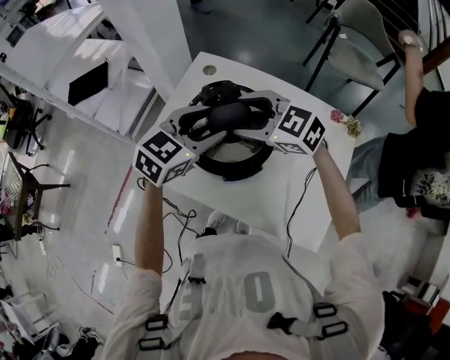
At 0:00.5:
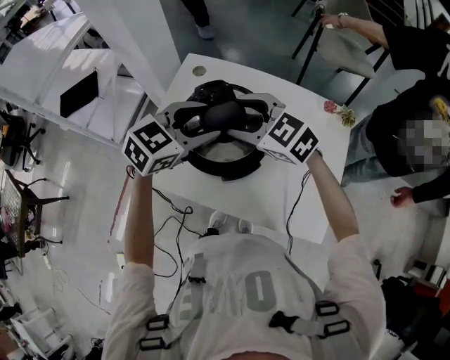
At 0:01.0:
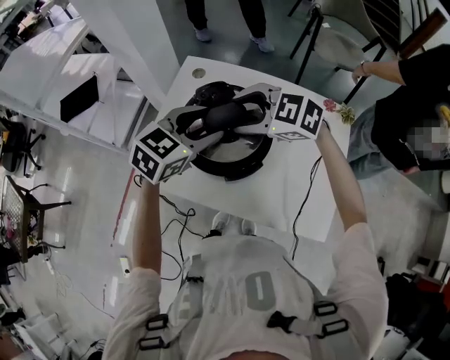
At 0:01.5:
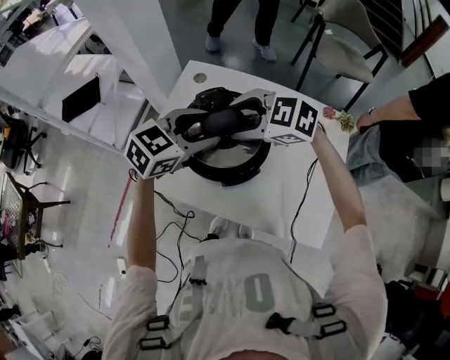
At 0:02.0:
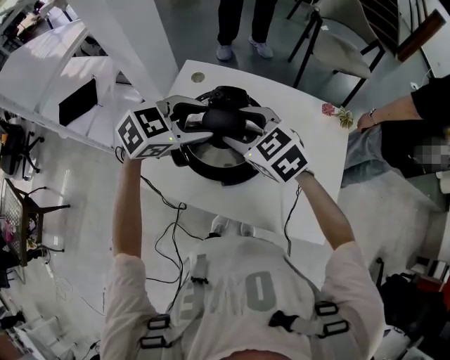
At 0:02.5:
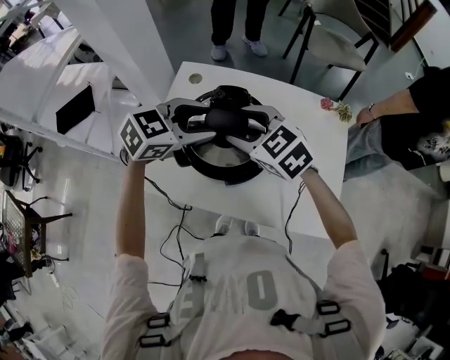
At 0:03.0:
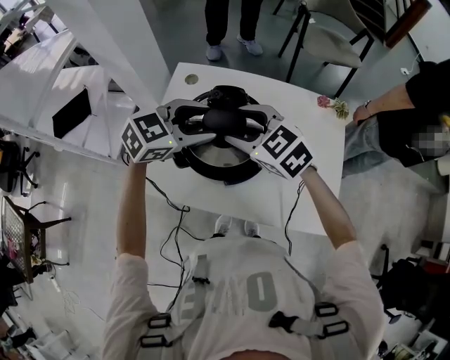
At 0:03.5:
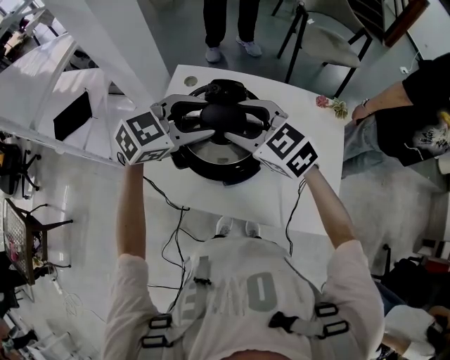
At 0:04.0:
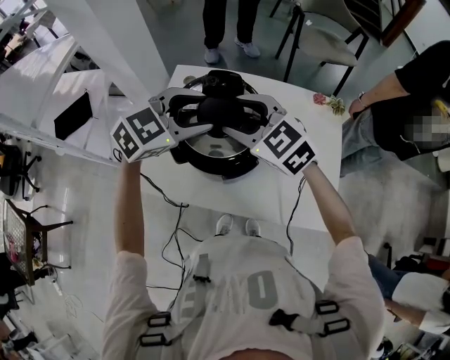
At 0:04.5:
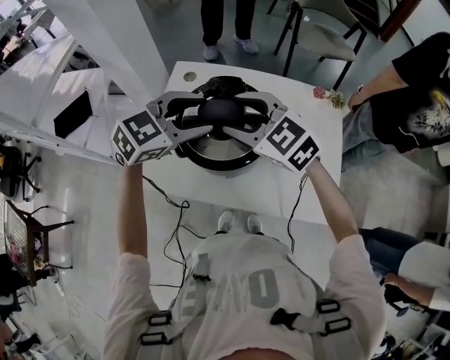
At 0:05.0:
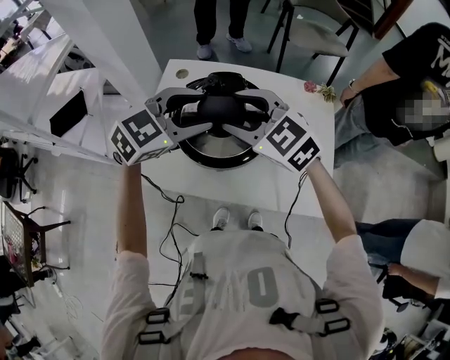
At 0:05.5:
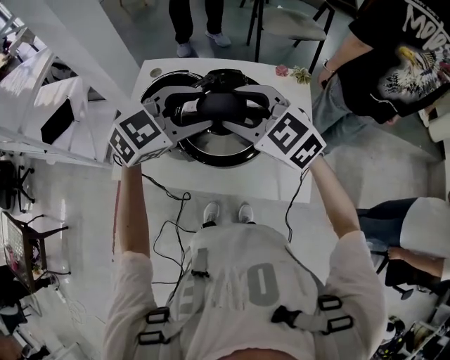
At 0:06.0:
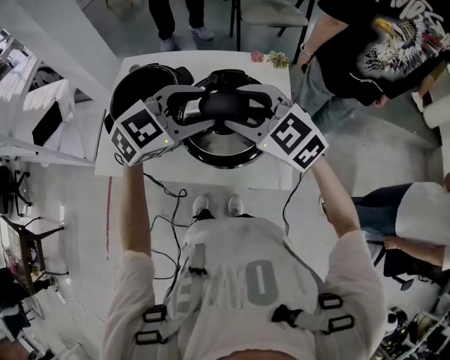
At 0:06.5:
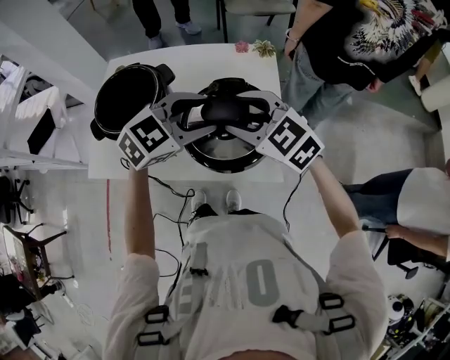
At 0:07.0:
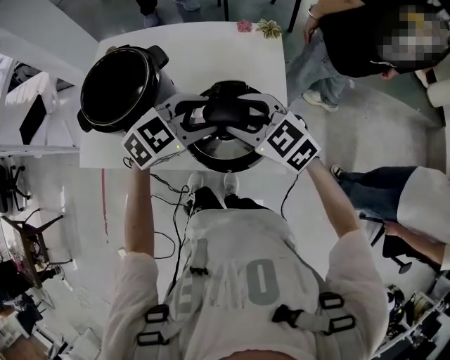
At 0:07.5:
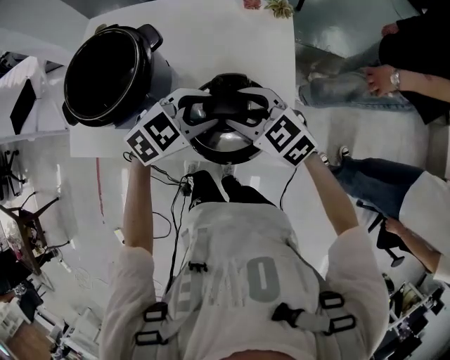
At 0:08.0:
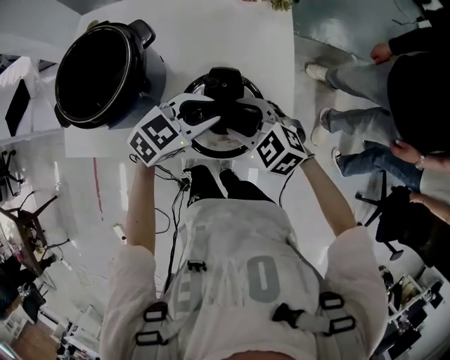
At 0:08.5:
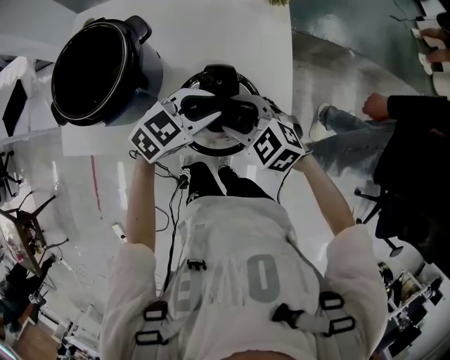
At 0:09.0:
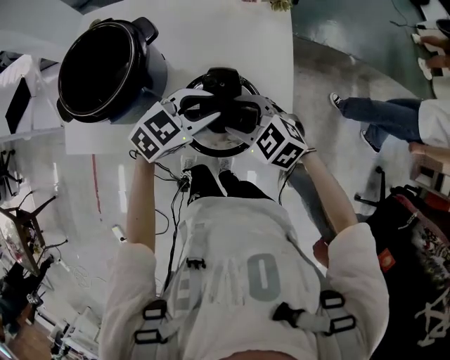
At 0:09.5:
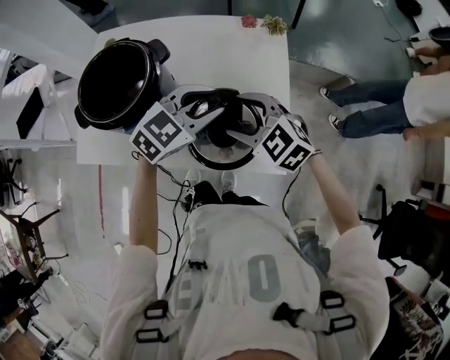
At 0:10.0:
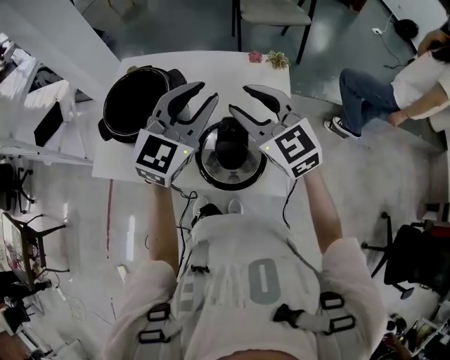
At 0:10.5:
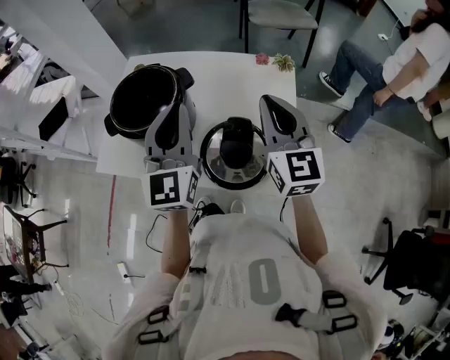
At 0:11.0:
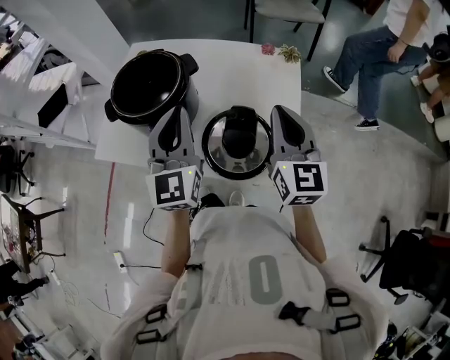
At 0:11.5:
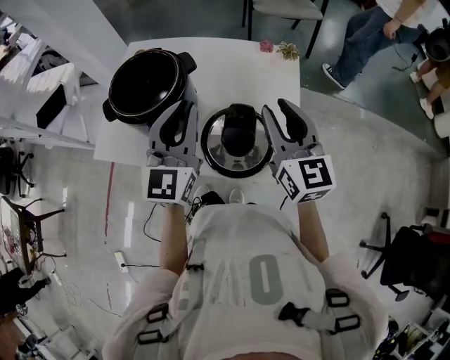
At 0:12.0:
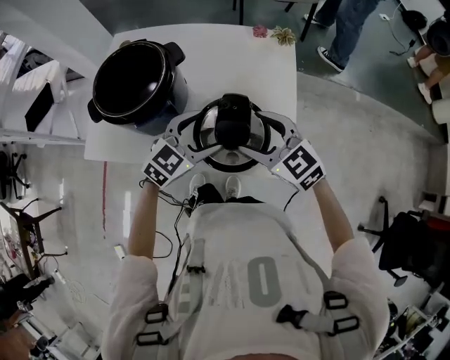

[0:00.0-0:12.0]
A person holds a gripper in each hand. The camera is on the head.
0:00.0 to 0:02.0: The right gripper changes its angle by about 30 degrees; the left gripper swivels about 30 degrees.
0:02.0 to 0:04.0: There are only small adjustments of the grippers.
0:04.0 to 0:06.0: The two grippers go approximately 30 cm to the right and backward.
0:06.0 to 0:08.0: The grippers both shift downward by approximately 20 cm. The left gripper rotates about 20 degrees.
0:08.0 to 0:10.0: The grippers both shift upward by approximately 25 cm. The right gripper angles its fingers upward, by roughly 30 degrees. Meanwhile the left gripper turns by approximately 50 degrees.
0:10.0 to 0:12.0: The right gripper heads downward and backward, covering some 15 cm, changes its angle by some 20 degrees, and closes and opens again. The left gripper heads downward, covering about 20 cm, changes its angle by approximately 30 degrees, and opens up.

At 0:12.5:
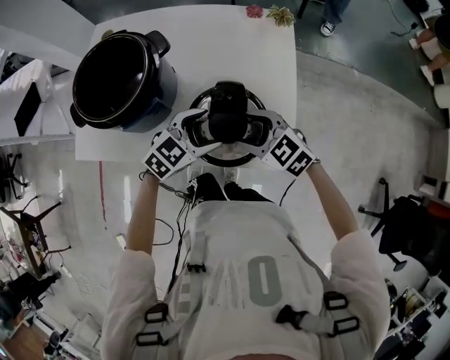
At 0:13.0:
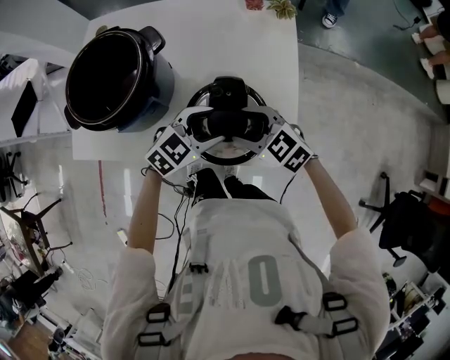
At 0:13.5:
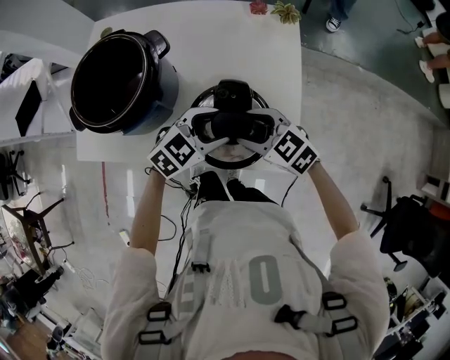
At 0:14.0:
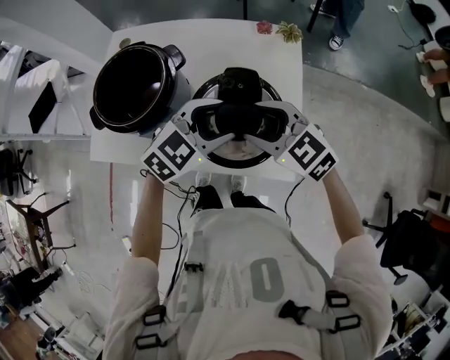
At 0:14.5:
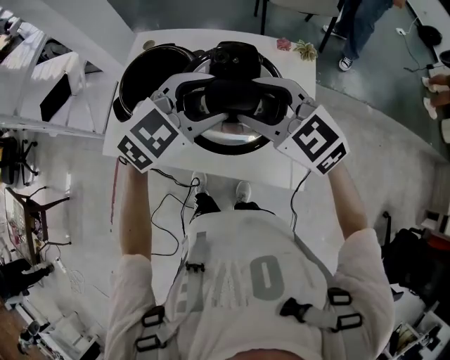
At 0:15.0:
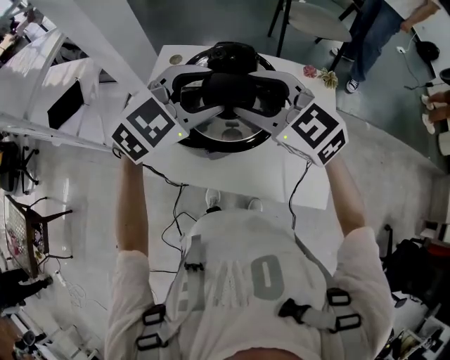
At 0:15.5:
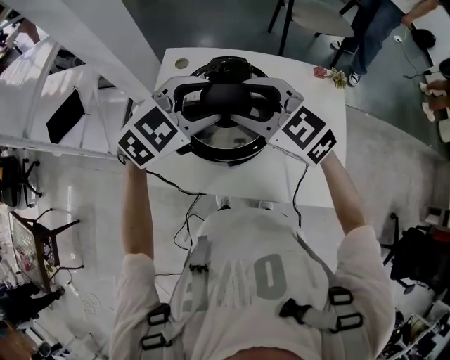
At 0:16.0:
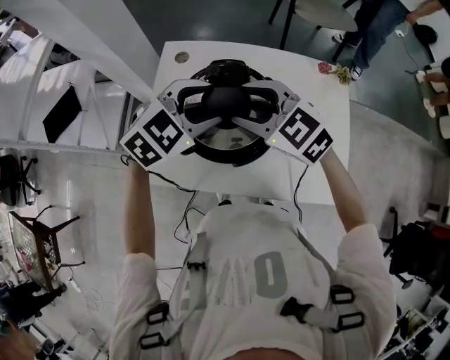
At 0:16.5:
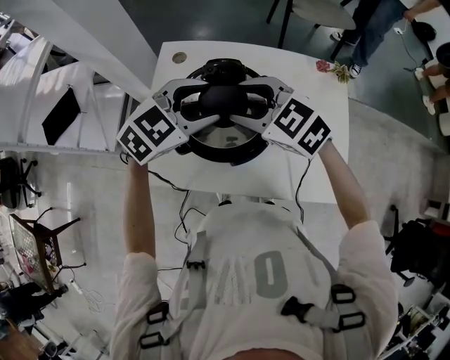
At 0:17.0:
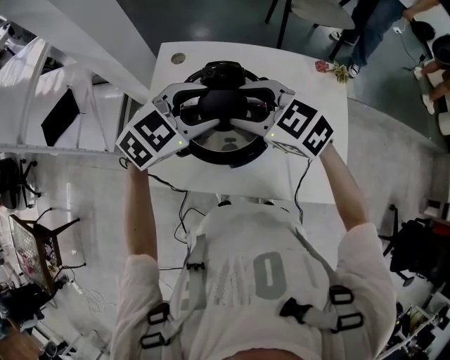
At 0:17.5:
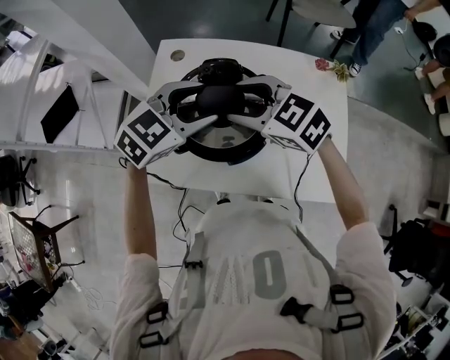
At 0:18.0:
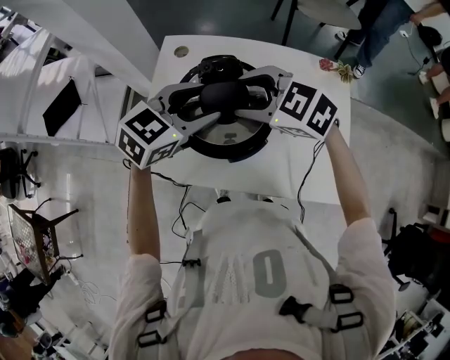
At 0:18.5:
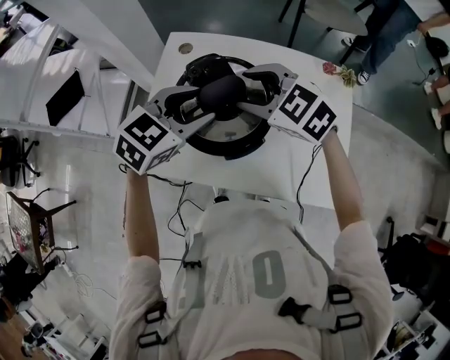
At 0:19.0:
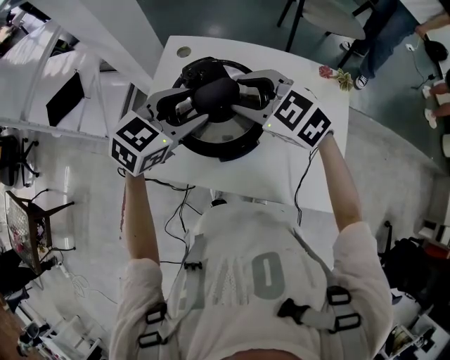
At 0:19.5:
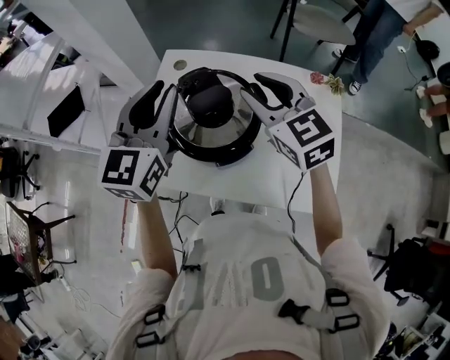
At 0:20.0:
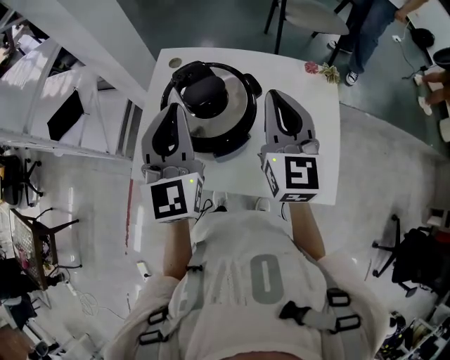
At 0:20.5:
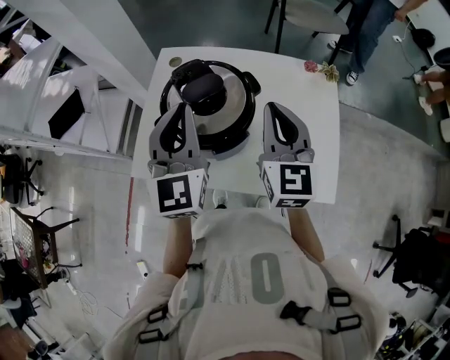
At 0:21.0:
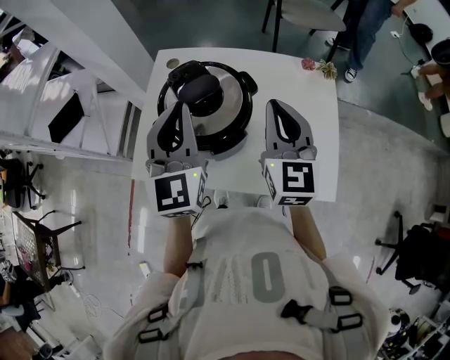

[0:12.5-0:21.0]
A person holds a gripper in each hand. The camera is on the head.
0:12.5 to 0:14.5: The grippers both shift upward by about 25 cm.
0:14.5 to 0:16.5: Both grippers move to the left and forward, approximately 25 cm.
0:16.5 to 0:19.0: The left gripper rotates approximately 20 degrees.
0:19.0 to 0:21.0: The right gripper is displaced to the right and backward by approximately 15 cm, tips its fingers upward by approximately 30 degrees, and closes. Meanwhile the left gripper shifts approximately 10 cm upward and backward, points its fingers approximately 30 degrees further upward, and closes its fingers.

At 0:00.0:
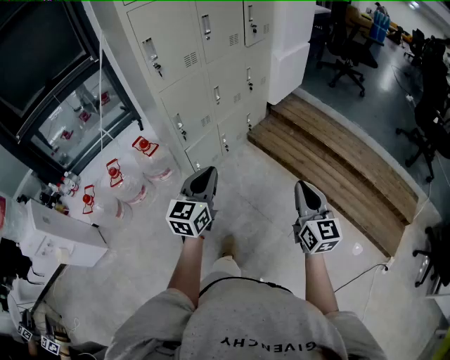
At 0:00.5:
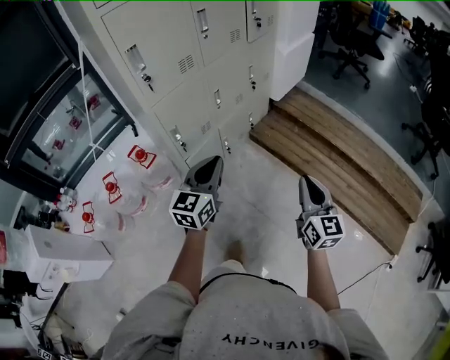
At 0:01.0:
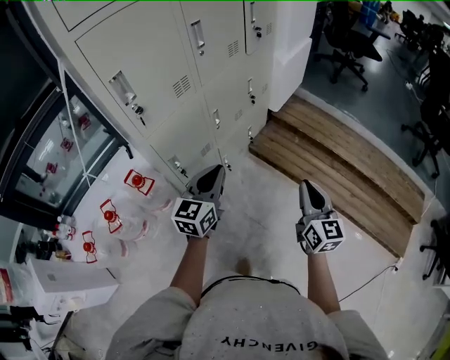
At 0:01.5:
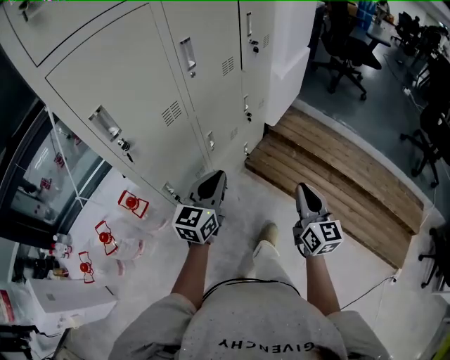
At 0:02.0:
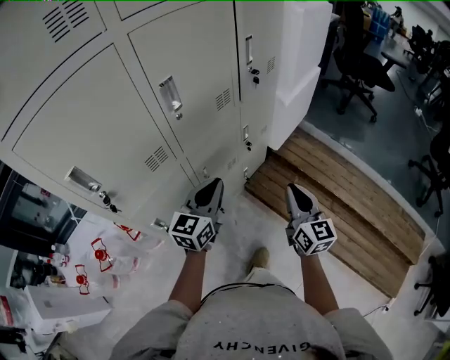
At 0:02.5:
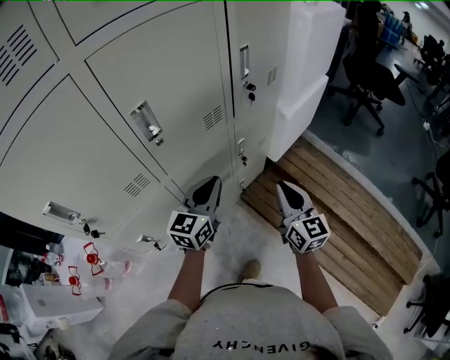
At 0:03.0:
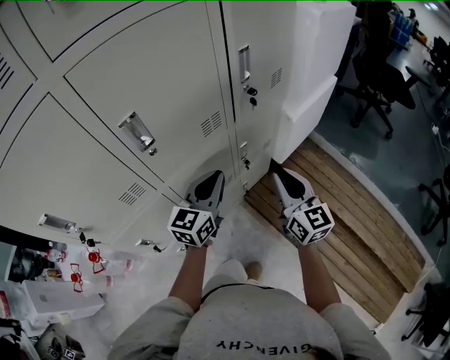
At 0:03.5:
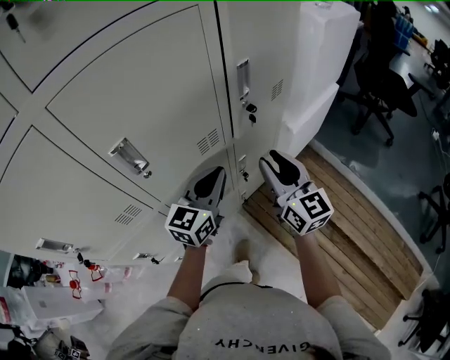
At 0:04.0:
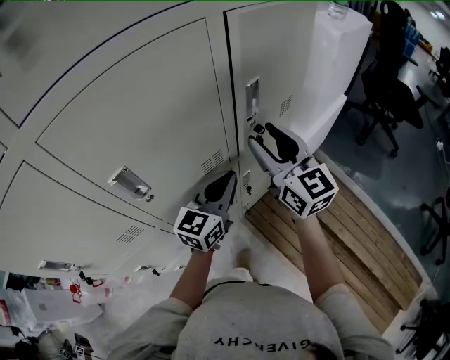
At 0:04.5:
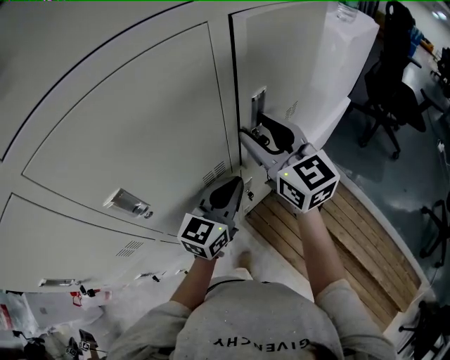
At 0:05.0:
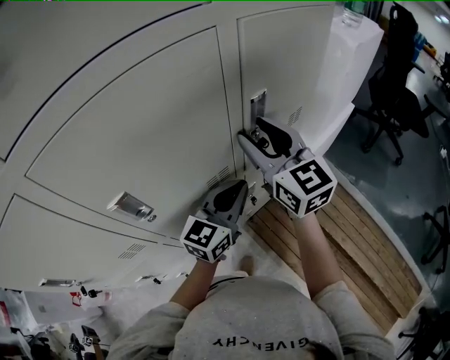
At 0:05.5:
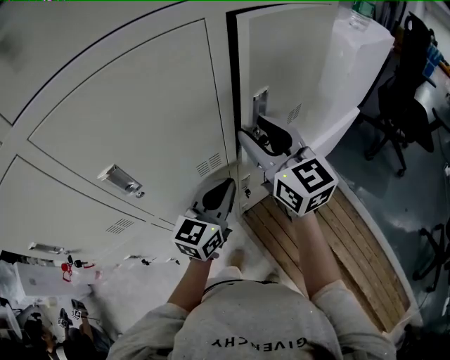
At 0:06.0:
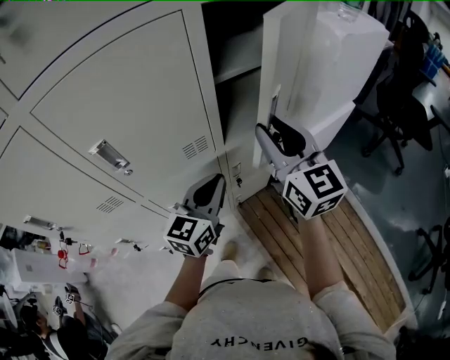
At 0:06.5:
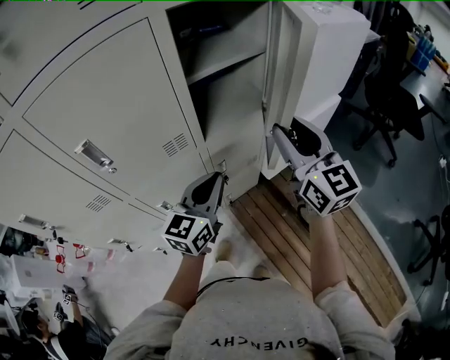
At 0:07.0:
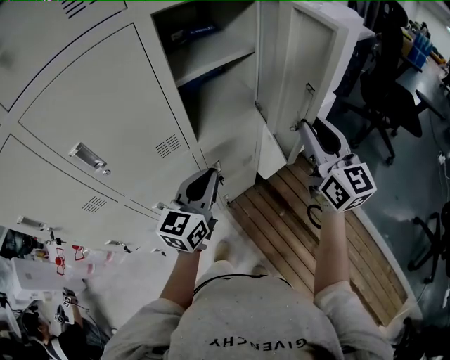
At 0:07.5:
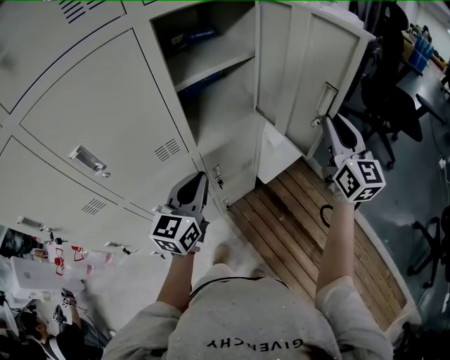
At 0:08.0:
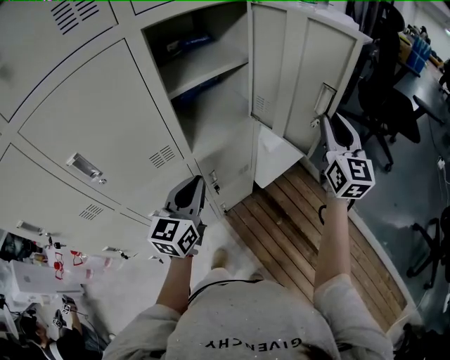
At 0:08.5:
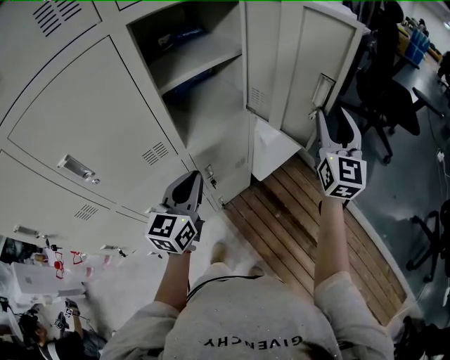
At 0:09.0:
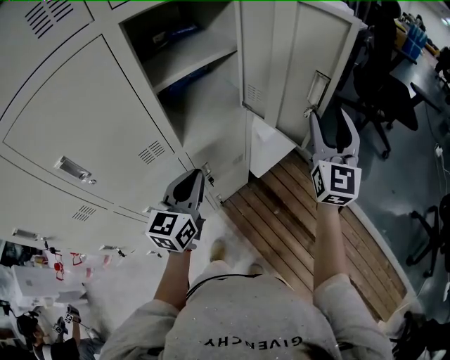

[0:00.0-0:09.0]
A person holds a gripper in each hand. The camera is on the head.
0:00.0 to 0:02.0: Both grippers are carried forward, about 50 cm.
0:02.0 to 0:04.5: The right gripper moves forward and upward, some 40 cm, rotates approximately 30 degrees, and opens up. Meanwhile the left gripper is displaced forward by about 25 cm.
0:04.5 to 0:07.0: The right gripper heads to the right, covering about 25 cm, and closes. The left gripper shifts roughly 10 cm to the right and backward.
0:07.0 to 0:09.0: The right gripper goes roughly 10 cm to the right, changes its angle by some 30 degrees, and opens its fingers.
